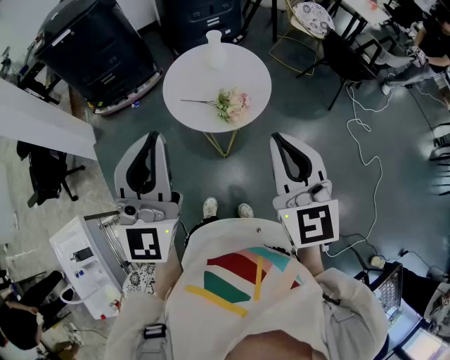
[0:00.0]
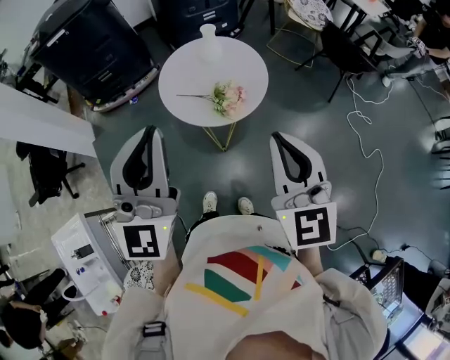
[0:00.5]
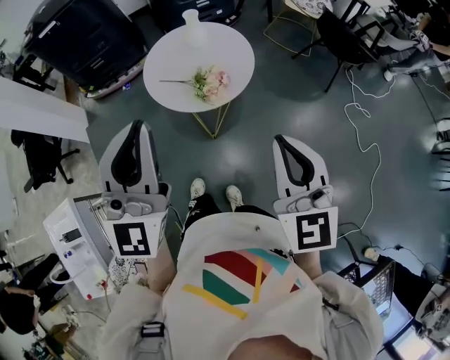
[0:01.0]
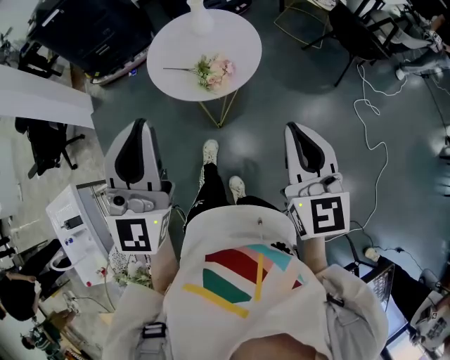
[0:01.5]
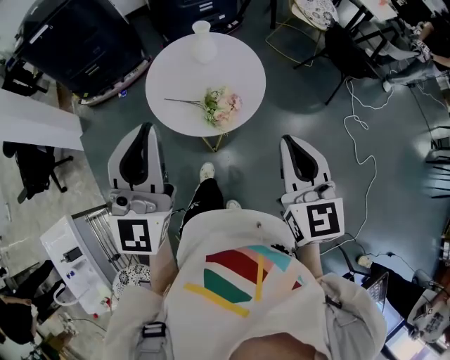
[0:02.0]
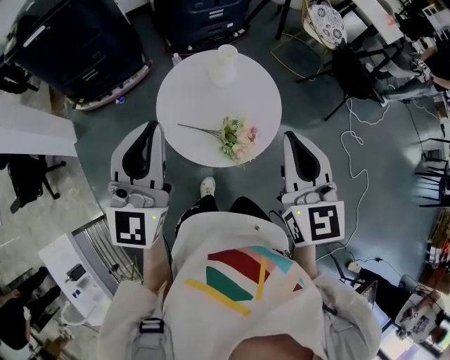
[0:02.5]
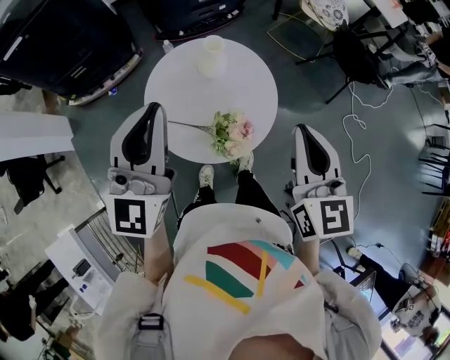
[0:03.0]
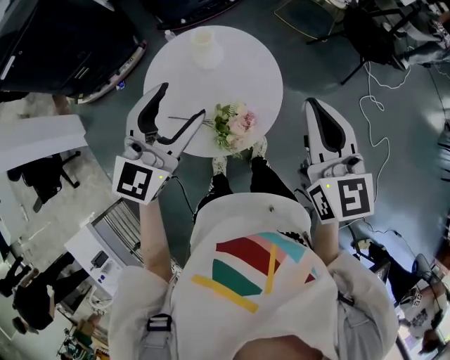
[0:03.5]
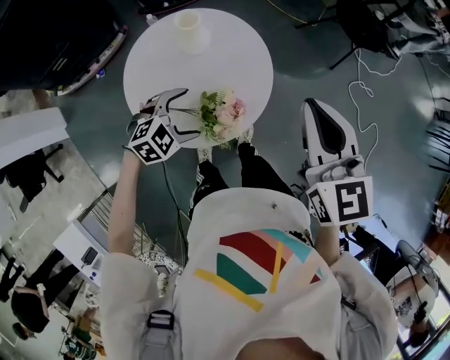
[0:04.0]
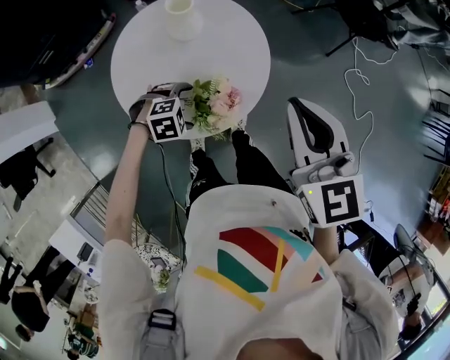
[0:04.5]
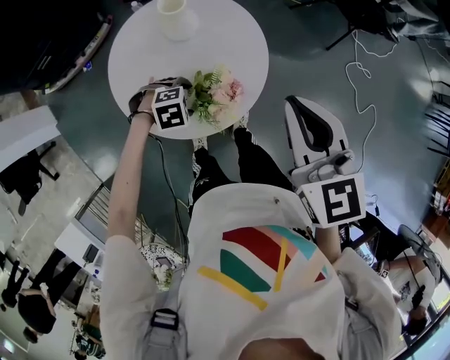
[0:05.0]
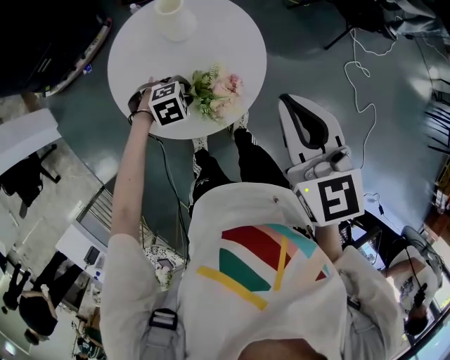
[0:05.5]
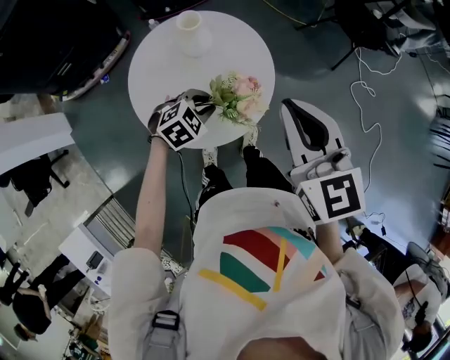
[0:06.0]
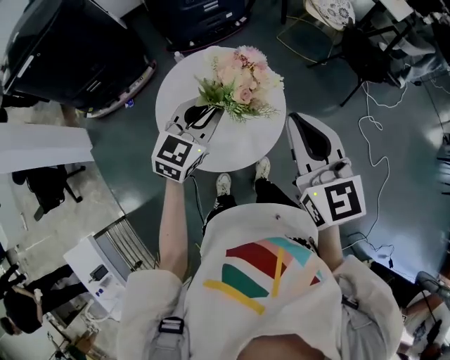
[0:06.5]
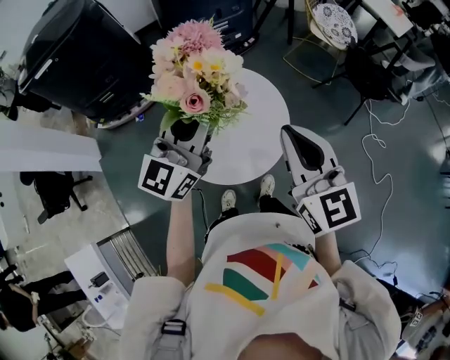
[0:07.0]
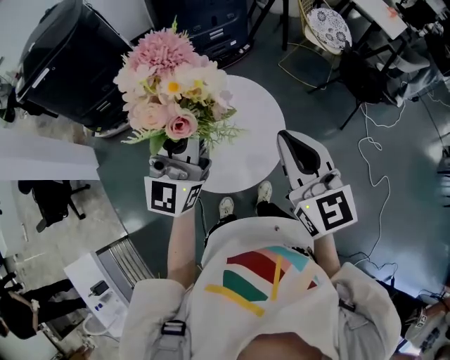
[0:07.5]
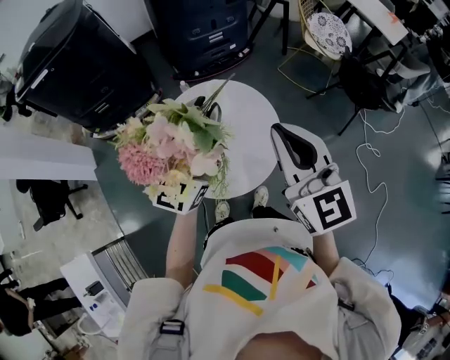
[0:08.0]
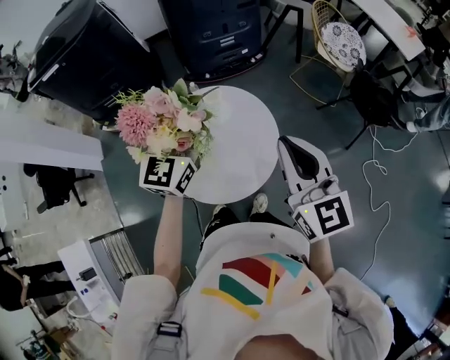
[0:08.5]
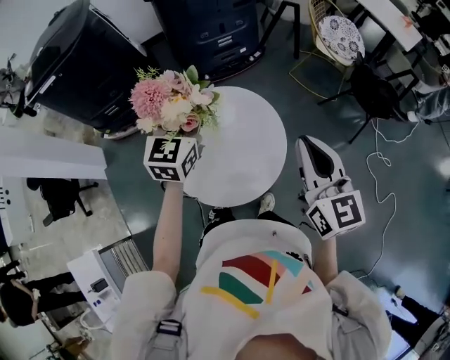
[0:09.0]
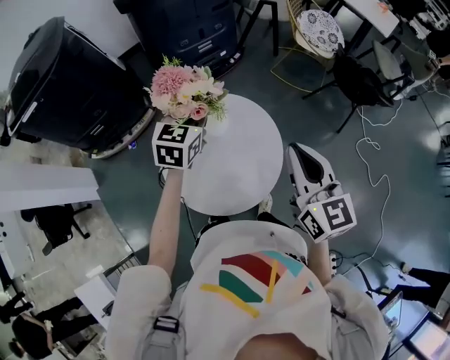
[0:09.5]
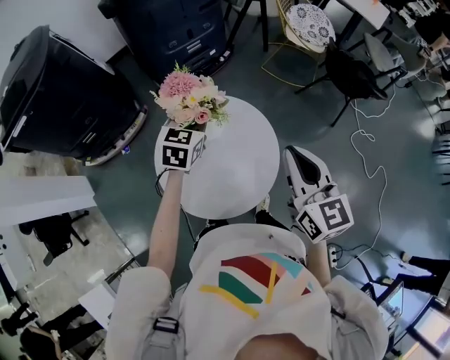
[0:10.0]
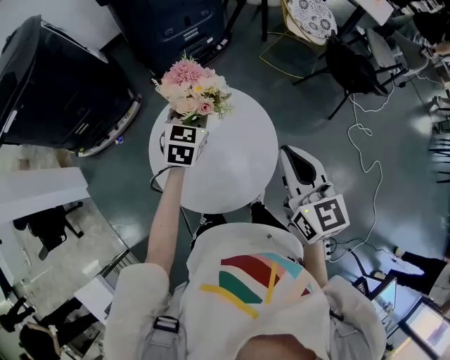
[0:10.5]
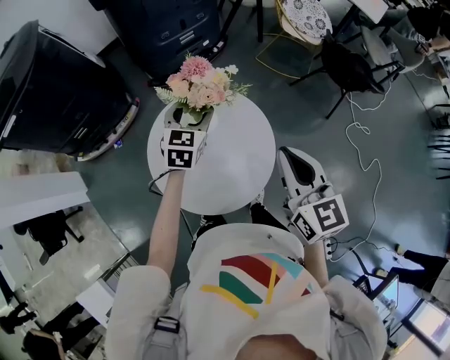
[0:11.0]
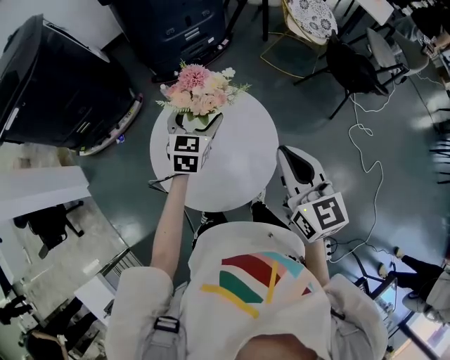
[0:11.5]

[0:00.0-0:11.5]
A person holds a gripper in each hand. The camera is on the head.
0.0 to 2.0 s: The left gripper shifts roughly 10 cm forward and downward; the right gripper goes roughly 10 cm forward, downward and to the right.
2.0 to 4.0 s: The right gripper changes place by about 20 cm, while the left gripper heads downward, covering approximately 35 cm, points its fingers some 60 degrees further downward, and opens up.
4.0 to 6.0 s: The left gripper reaches approximately 10 cm downward, then returns, and closes up.
6.0 to 7.5 s: The left gripper is displaced upward by some 35 cm, and tips its fingers upward by some 80 degrees. The right gripper is displaced upward by approximately 5 cm.
7.5 to 9.5 s: The right gripper travels forward and to the right by roughly 10 cm, while the left gripper goes roughly 25 cm forward and downward, and angles its fingers downward, by approximately 50 degrees.
9.5 to 11.5 s: The left gripper goes about 10 cm downward, and opens its fingers.

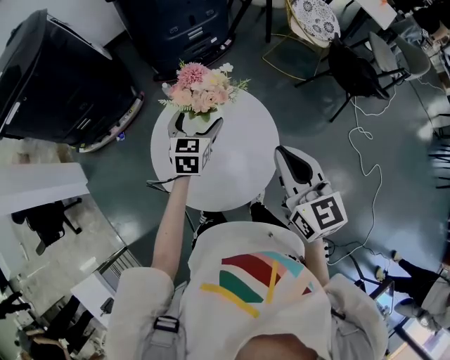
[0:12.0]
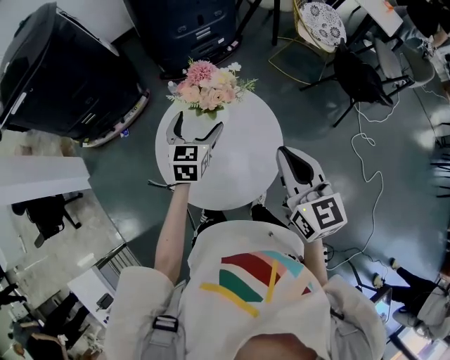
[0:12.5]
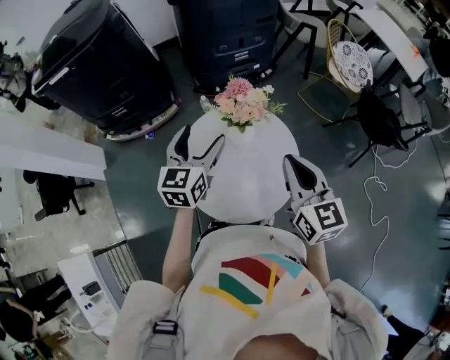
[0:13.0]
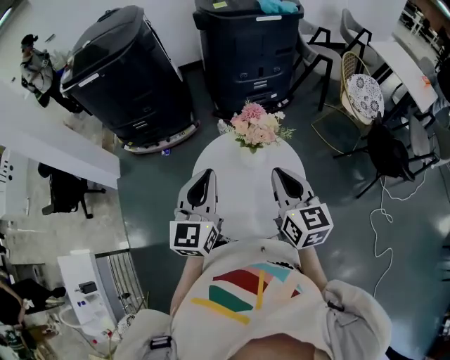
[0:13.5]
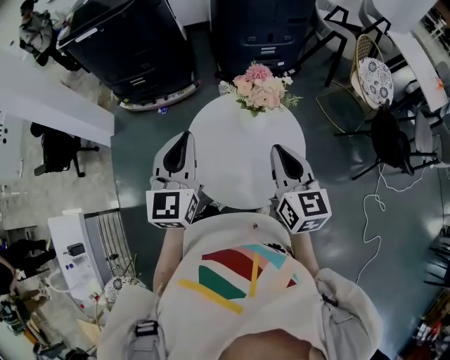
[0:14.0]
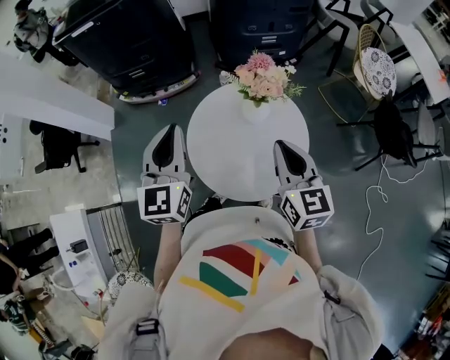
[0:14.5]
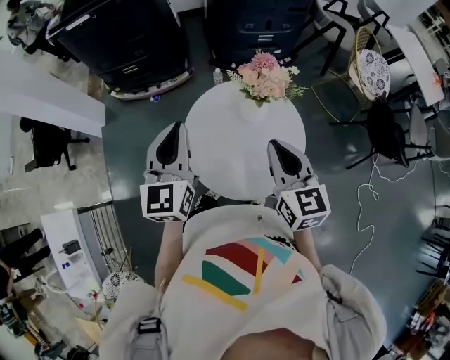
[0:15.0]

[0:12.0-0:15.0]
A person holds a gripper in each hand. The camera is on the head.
12.0 to 13.5 s: The left gripper moves upward, backward and to the left, roughly 25 cm, swivels approximately 30 degrees, and closes. The right gripper heads to the left, covering some 5 cm.
13.5 to 15.0 s: The left gripper moves to the left, some 5 cm.

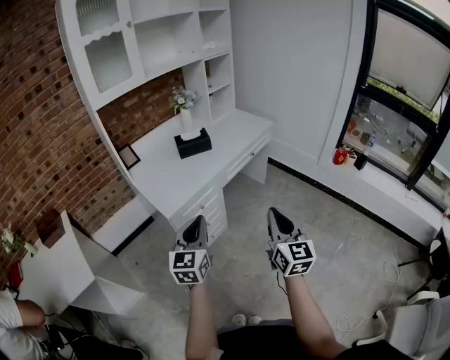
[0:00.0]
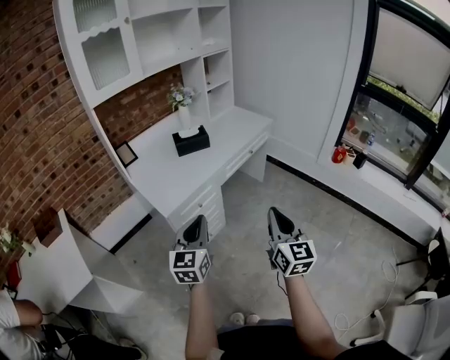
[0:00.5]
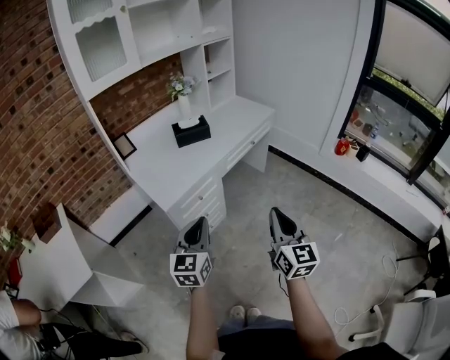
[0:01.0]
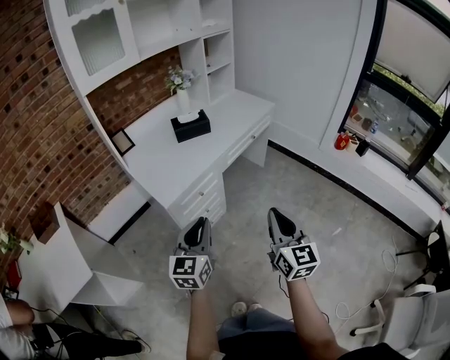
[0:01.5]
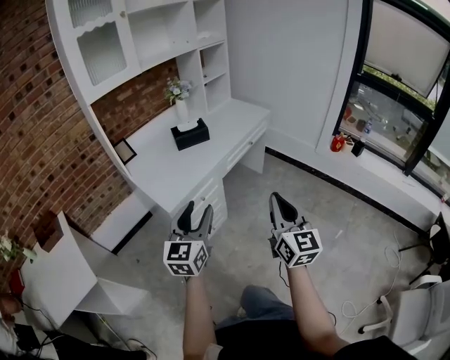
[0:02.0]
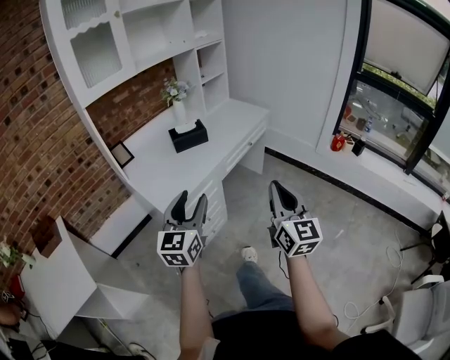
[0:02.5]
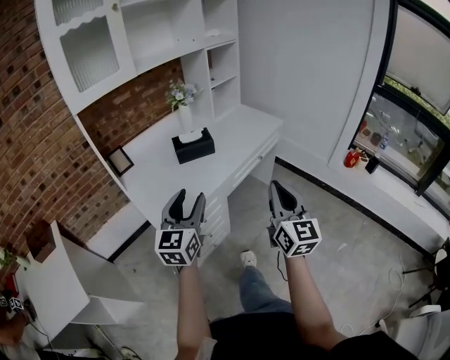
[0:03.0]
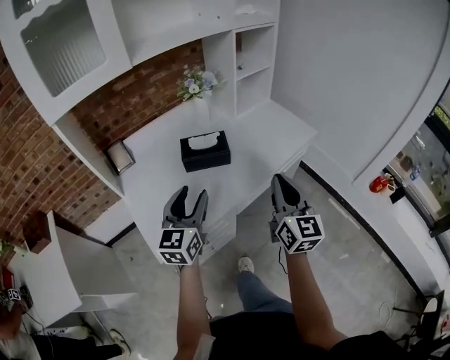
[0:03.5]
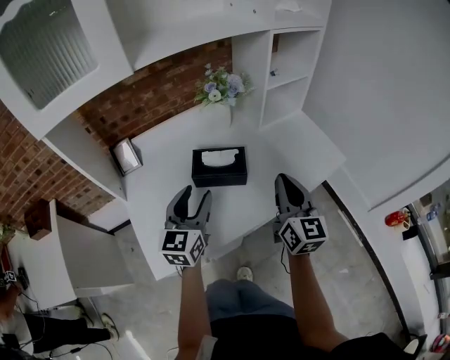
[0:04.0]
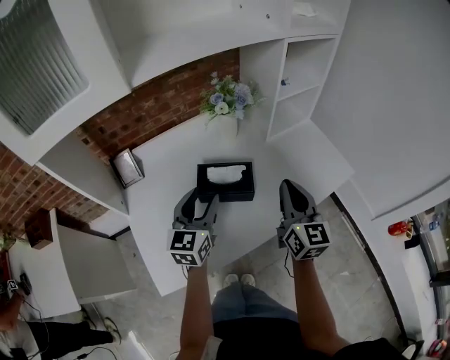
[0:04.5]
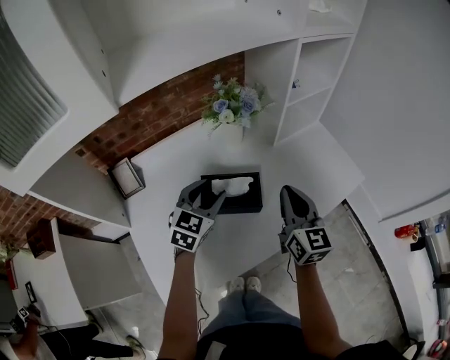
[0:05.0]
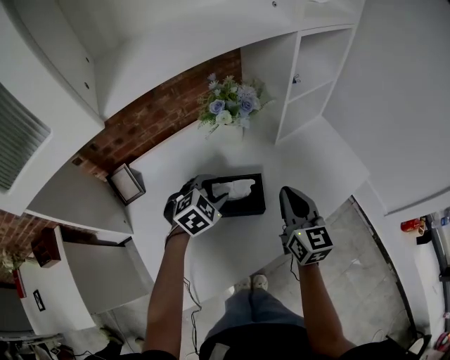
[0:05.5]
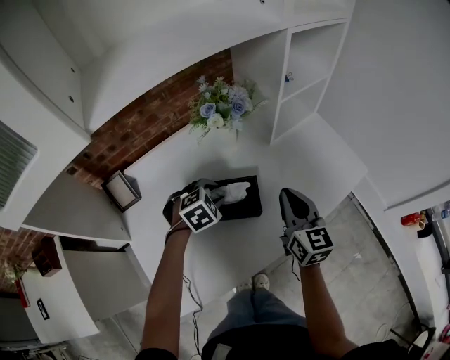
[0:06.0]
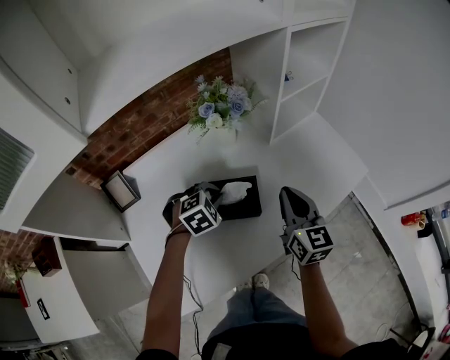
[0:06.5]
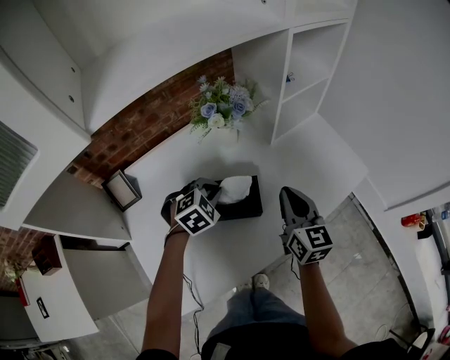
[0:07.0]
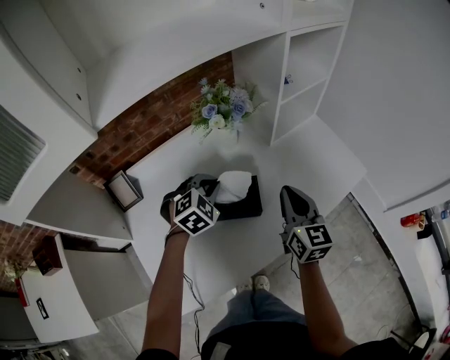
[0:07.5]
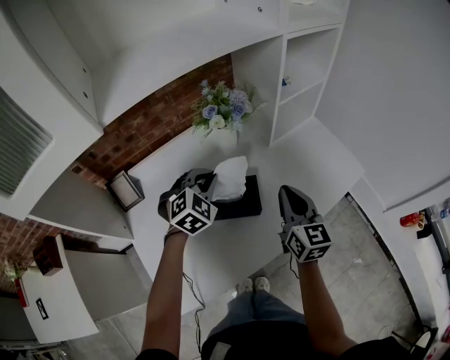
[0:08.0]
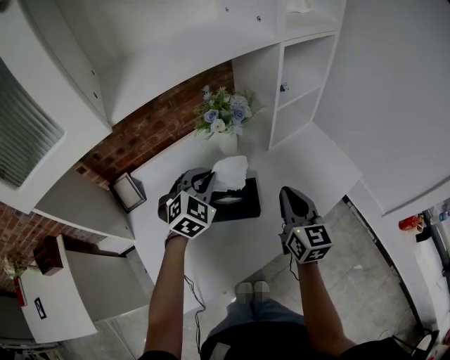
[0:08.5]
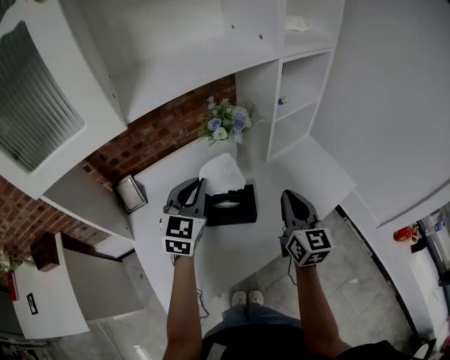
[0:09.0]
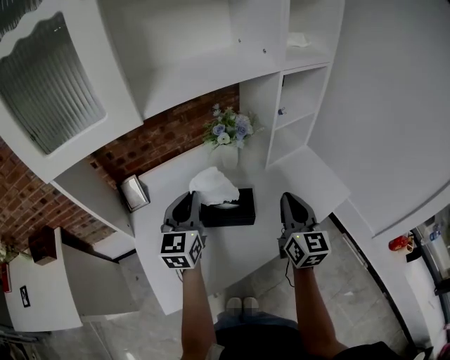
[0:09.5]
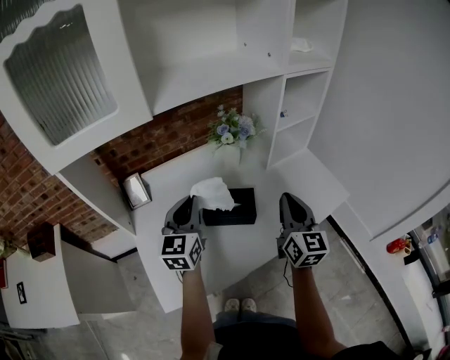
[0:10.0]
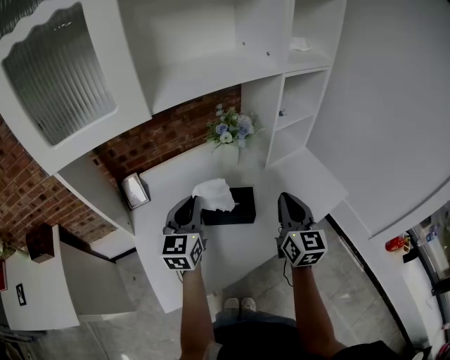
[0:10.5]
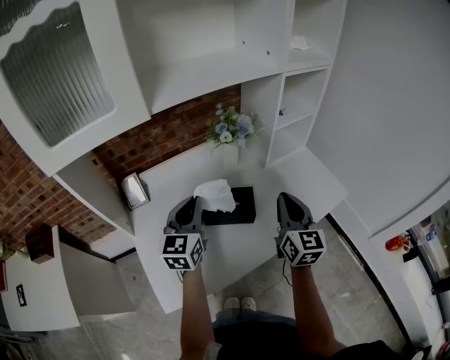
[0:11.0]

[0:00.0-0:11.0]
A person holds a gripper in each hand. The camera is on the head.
0.0 to 2.0 s: The left gripper opens its fingers.
2.0 to 3.5 s: Both grippers travel together forward, approximately 40 cm.
3.5 to 5.5 s: The right gripper heads forward, covering roughly 30 cm. Meanwhile the left gripper goes approximately 35 cm forward and downward, and tips its fingers downward by roughly 40 degrees.
5.5 to 7.5 s: The left gripper closes up.
7.5 to 9.0 s: The right gripper heads upward, covering about 5 cm; the left gripper travels upward by roughly 15 cm, and tilts its fingers roughly 40 degrees upward.
9.0 to 11.0 s: The left gripper moves backward, approximately 5 cm, and swivels about 20 degrees.

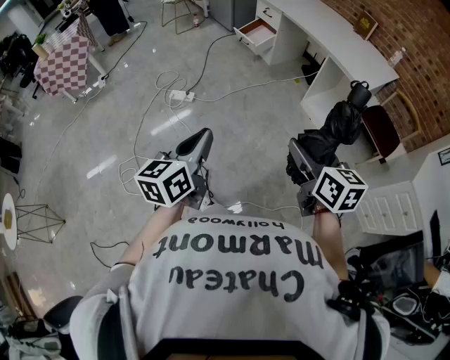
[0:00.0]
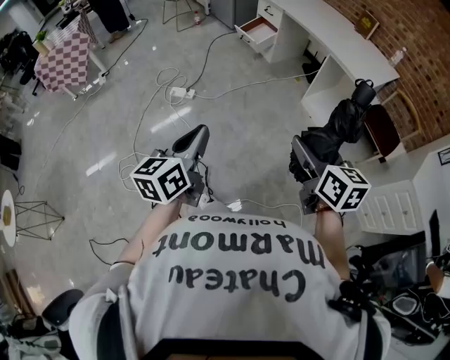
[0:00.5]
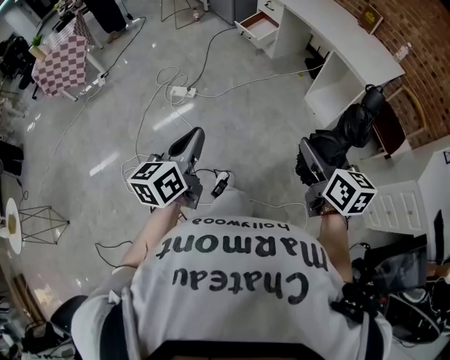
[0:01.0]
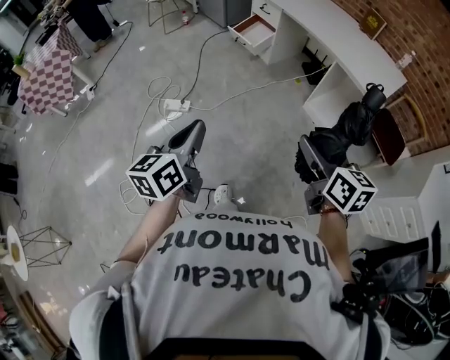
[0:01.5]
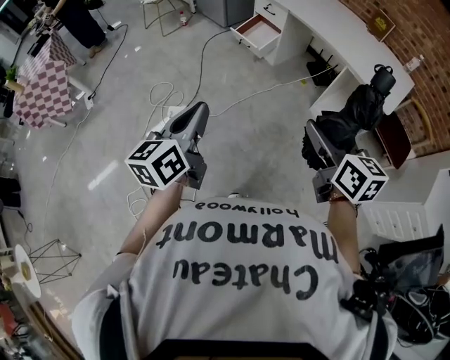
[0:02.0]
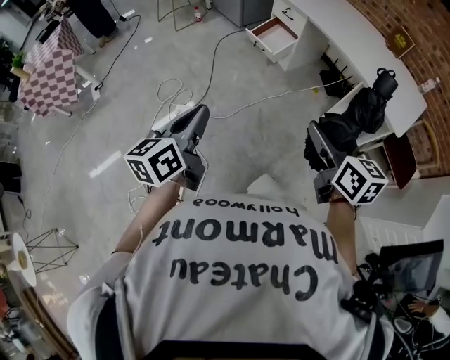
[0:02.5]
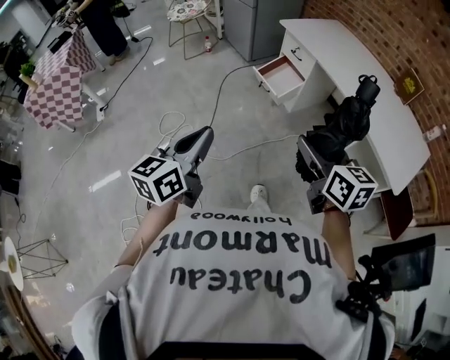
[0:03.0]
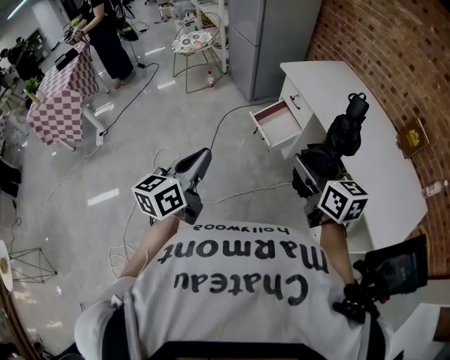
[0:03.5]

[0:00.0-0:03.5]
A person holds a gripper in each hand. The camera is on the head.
0.0 to 2.0 s: Both grippers move forward, about 30 cm.
2.0 to 3.5 s: Both grippers travel together forward, some 40 cm.
